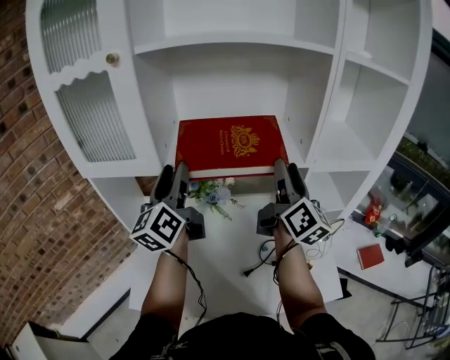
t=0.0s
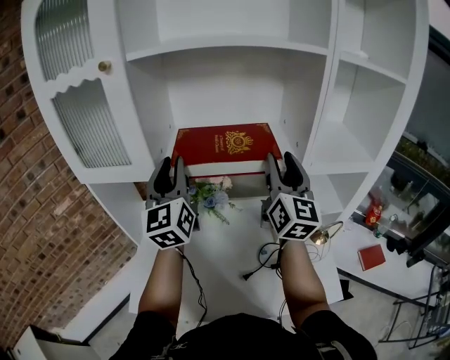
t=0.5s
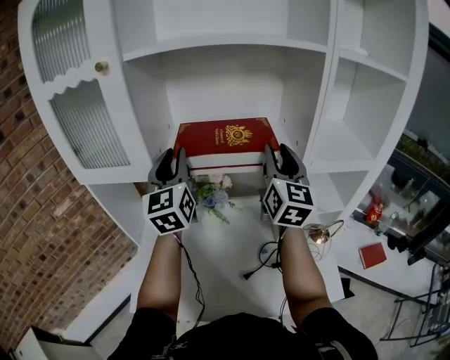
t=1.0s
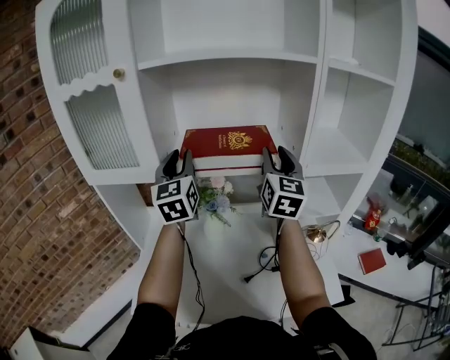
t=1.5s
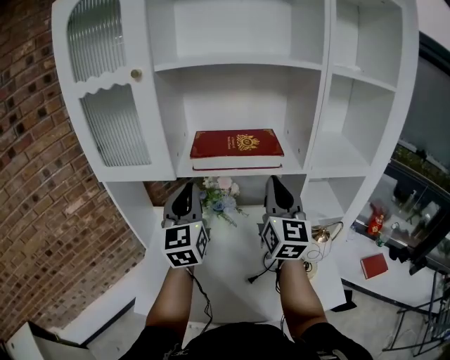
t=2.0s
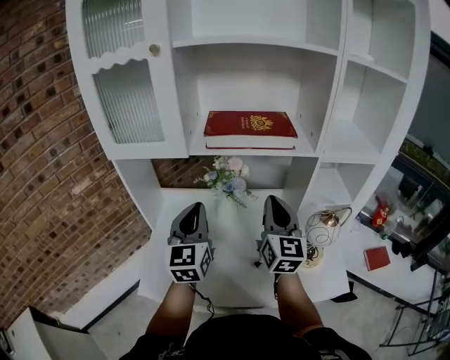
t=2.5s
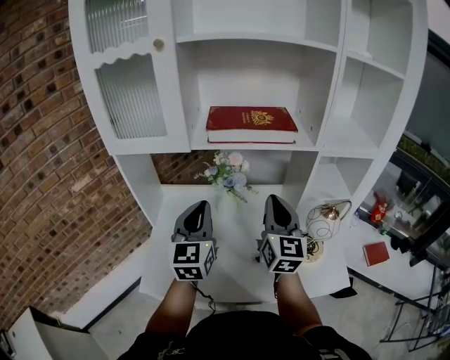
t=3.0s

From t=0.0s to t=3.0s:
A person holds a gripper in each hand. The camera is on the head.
From t=0.0s to t=1.5s: The right gripper ends up about 5 cm from where it was, swivels about 40 degrees, and closes. The left gripper moves approximately 5 cm, turns by approximately 30 degrees, and closes its fingers.
From t=1.5s to t=3.0s: The left gripper shifts about 25 cm backward and downward, and closes its fingers. Meanwhile the right gripper heads backward, downward and to the left, covering some 20 cm, and closes its fingers.

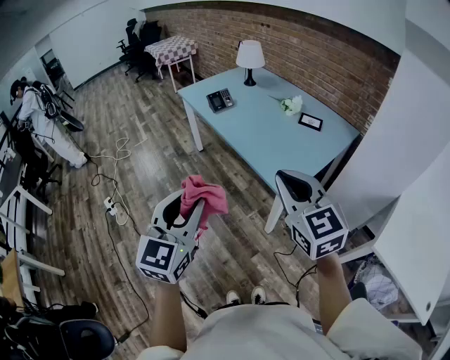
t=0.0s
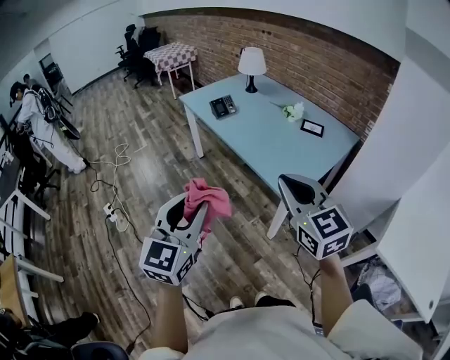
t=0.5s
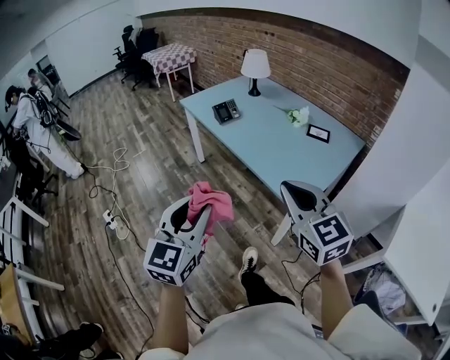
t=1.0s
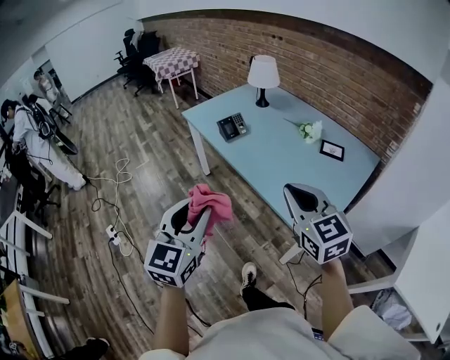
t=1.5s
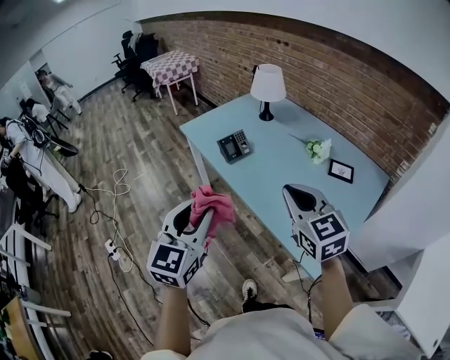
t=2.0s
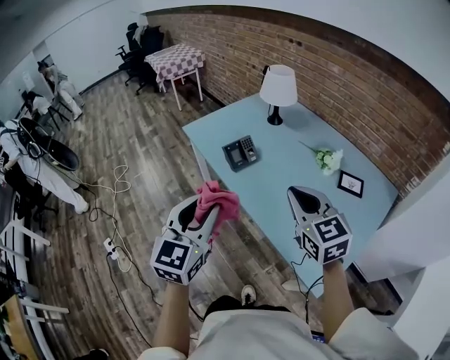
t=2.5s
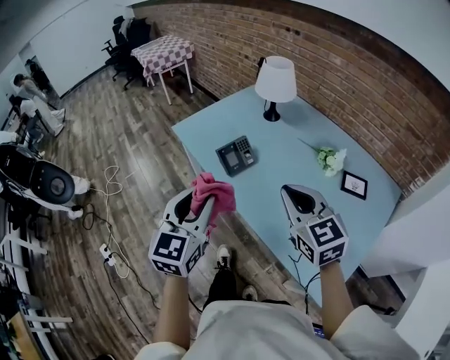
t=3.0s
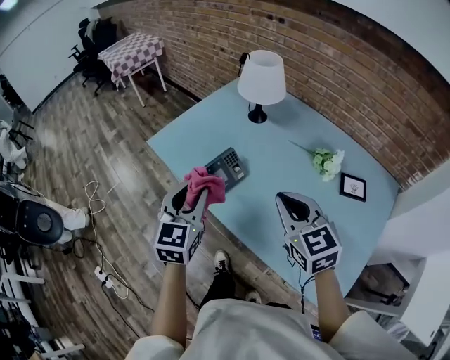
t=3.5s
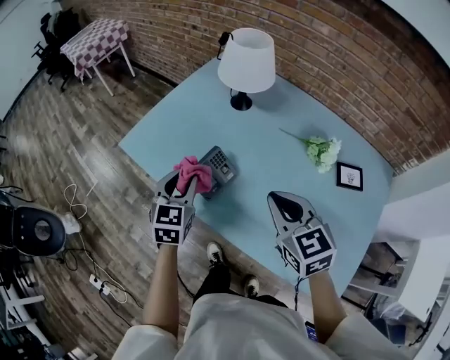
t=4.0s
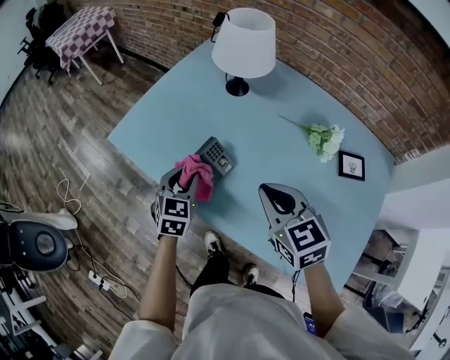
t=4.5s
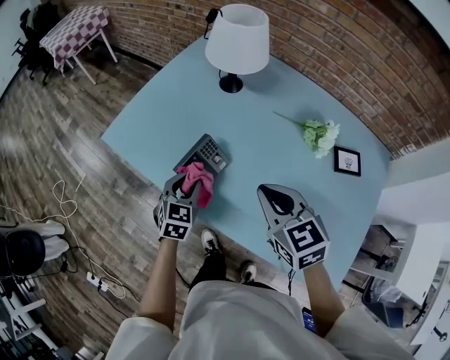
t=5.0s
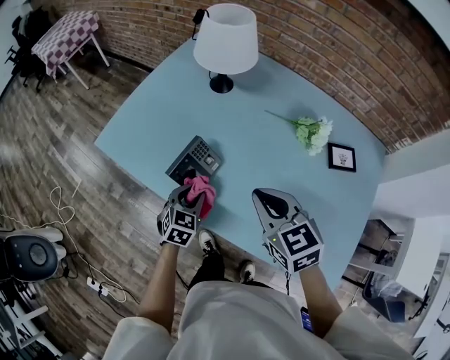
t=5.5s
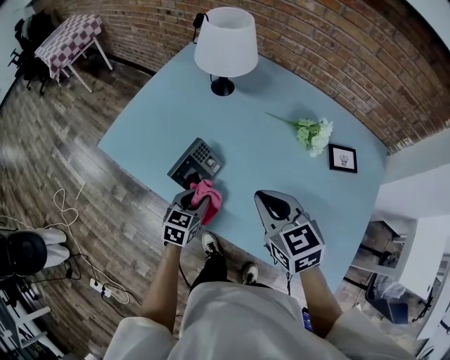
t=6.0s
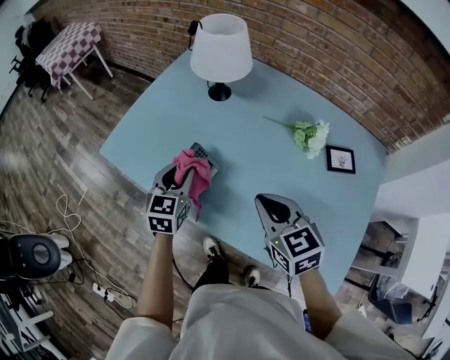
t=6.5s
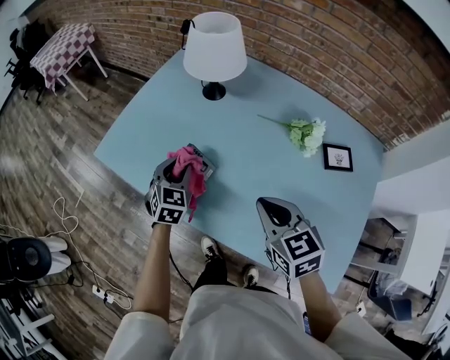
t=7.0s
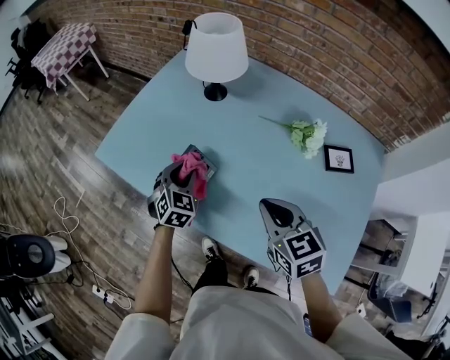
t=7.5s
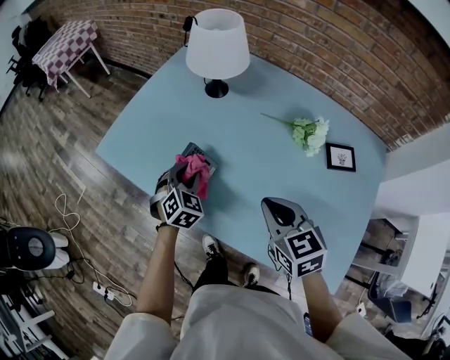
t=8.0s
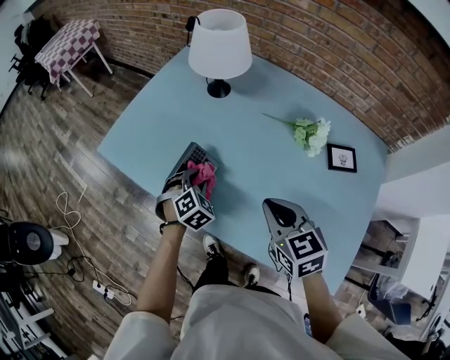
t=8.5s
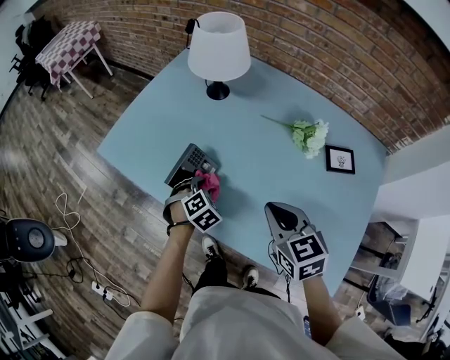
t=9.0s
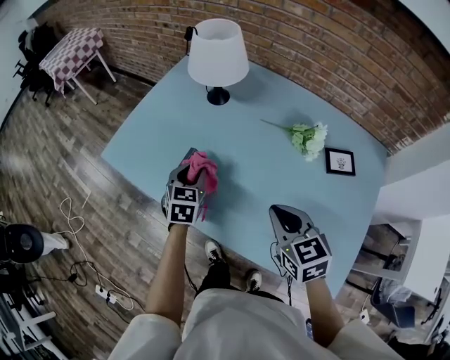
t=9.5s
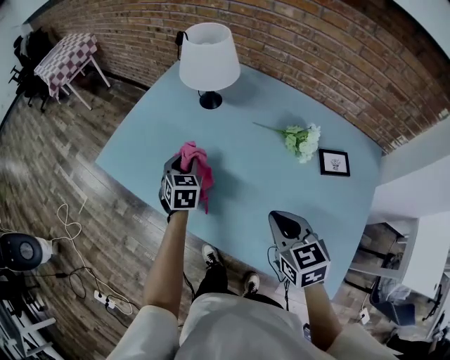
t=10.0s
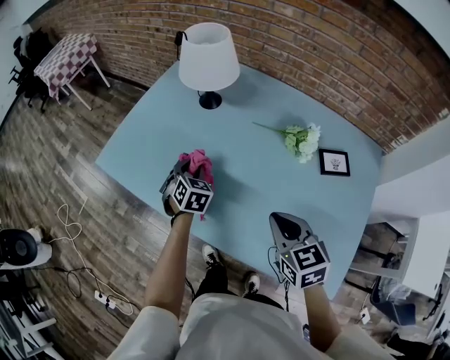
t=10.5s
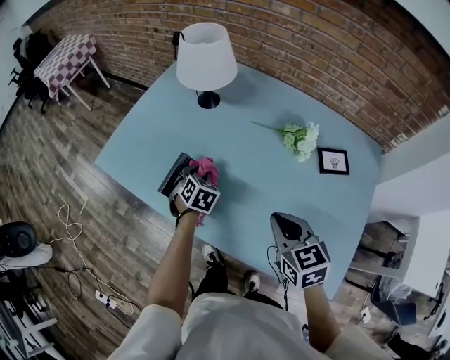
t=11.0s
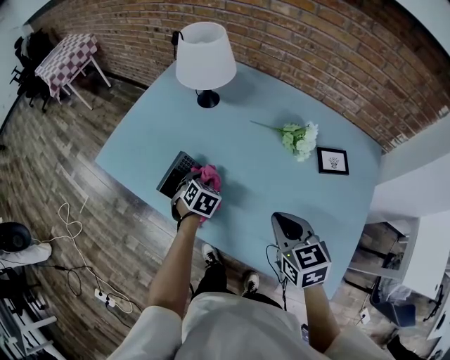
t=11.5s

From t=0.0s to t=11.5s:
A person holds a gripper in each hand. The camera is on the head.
From t=0.0s to t=2.0s: Both grippers move forward, approximately 35 cm.
From t=2.0s to t=4.0s: The left gripper moves forward, roughly 50 cm, and turns by some 20 degrees; the right gripper is displaced forward by some 35 cm, and swivels about 20 degrees.
From t=4.0s to t=6.0s: The left gripper moves downward and to the right, roughly 20 cm, and rotates about 30 degrees.
From t=6.0s to t=7.5s: The left gripper heads forward and upward, covering about 10 cm, and changes its angle by some 30 degrees.
From t=7.5s to t=9.5s: The left gripper moves some 10 cm downward and comes back, and swivels about 20 degrees.
From t=9.5s to t=11.5s: The left gripper heads downward and to the right, covering about 10 cm, and rotates some 30 degrees.

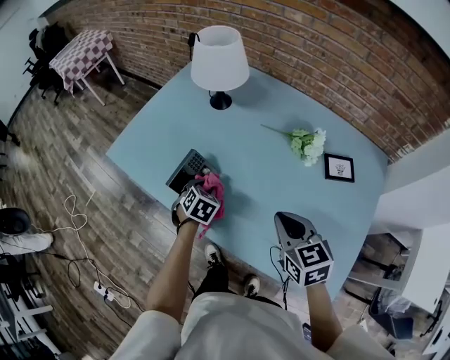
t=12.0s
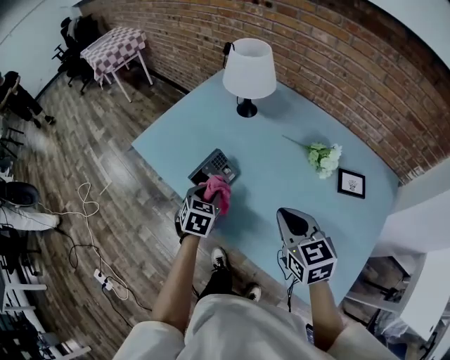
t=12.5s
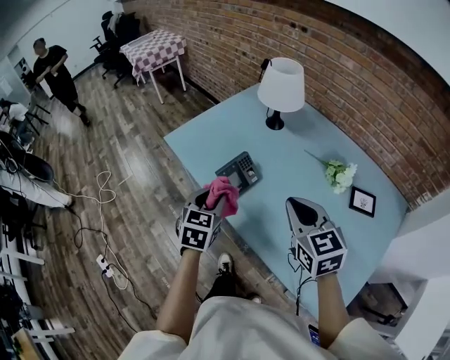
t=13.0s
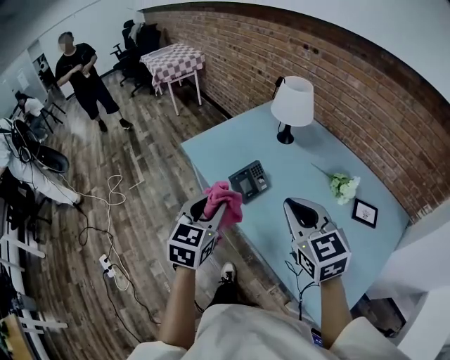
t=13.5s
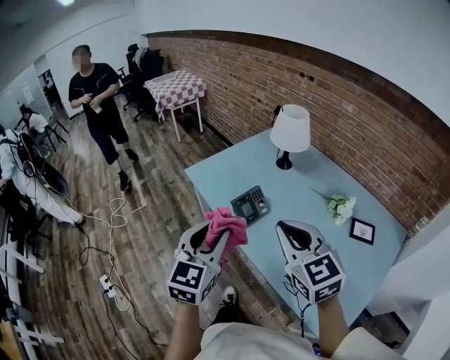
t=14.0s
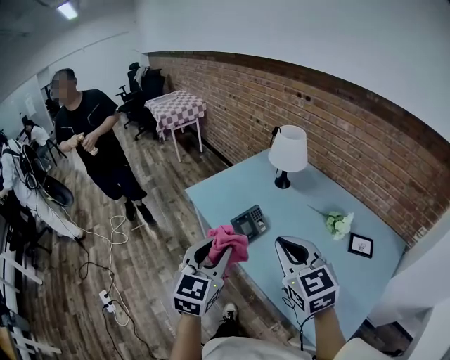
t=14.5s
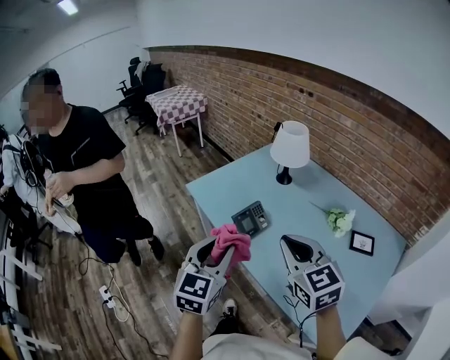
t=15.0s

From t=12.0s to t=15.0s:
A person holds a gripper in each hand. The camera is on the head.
From t=12.0s to t=13.5s: The right gripper goes roughly 20 cm upward and to the left, and turns by about 30 degrees. The left gripper travels upward, backward and to the left by roughly 35 cm, and angles its fingers upward, by about 40 degrees.
From t=13.5s to t=15.0s: The left gripper is displaced upward by roughly 5 cm.

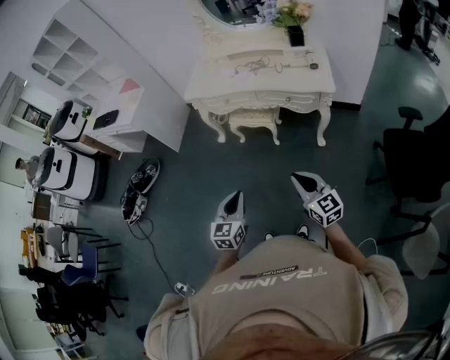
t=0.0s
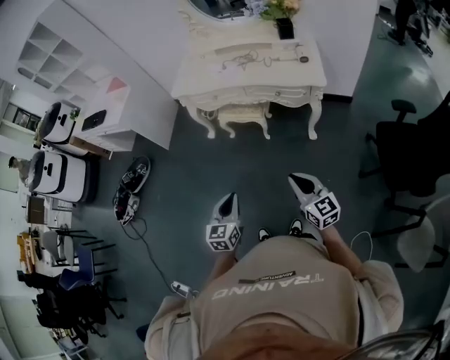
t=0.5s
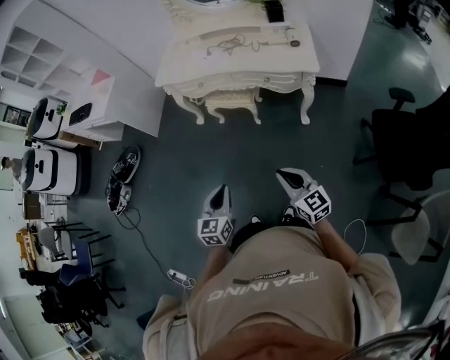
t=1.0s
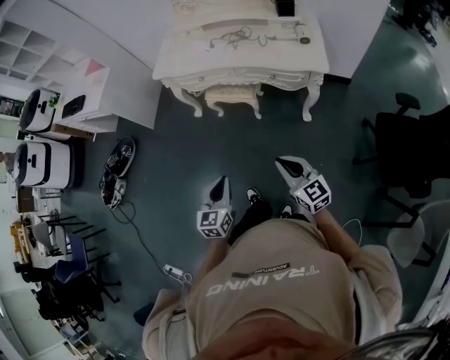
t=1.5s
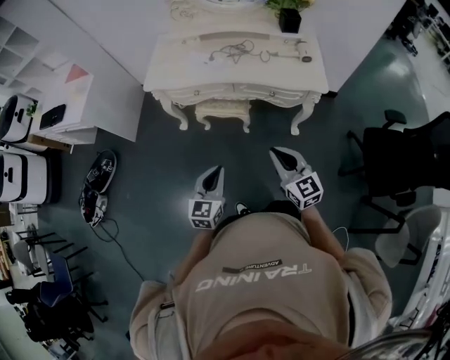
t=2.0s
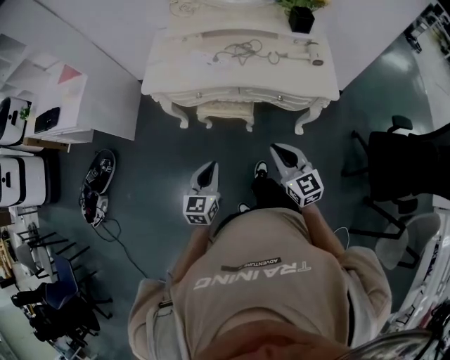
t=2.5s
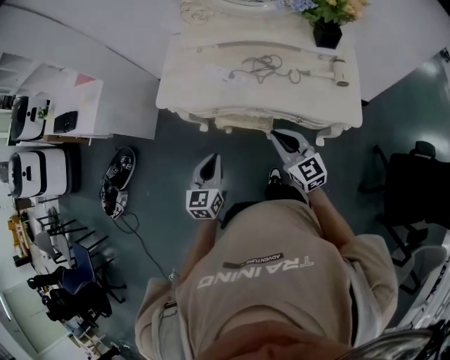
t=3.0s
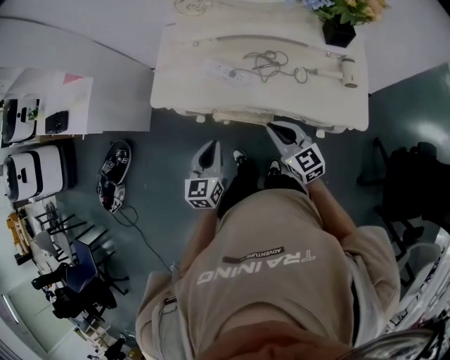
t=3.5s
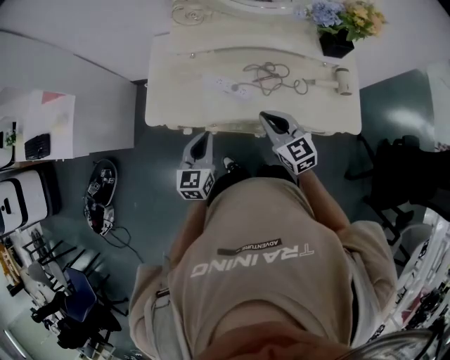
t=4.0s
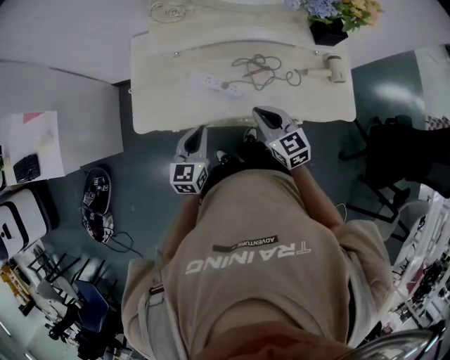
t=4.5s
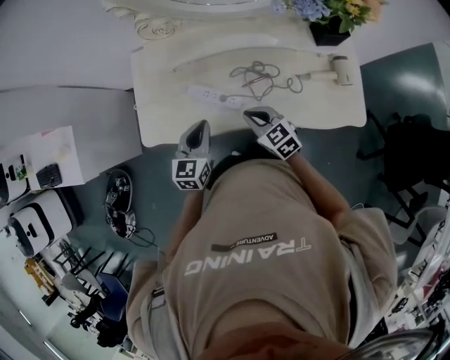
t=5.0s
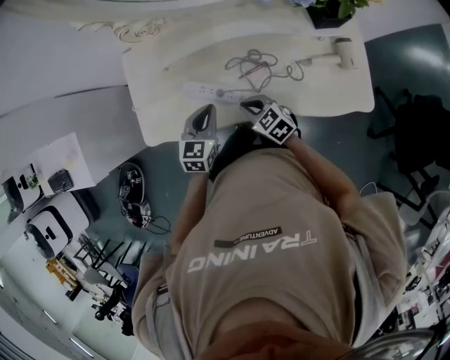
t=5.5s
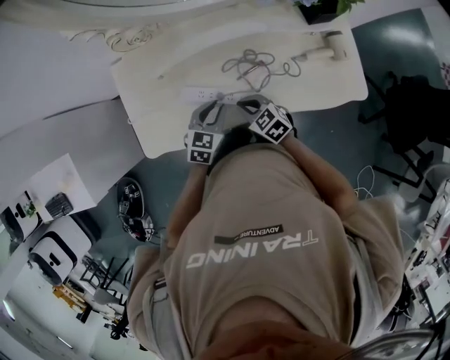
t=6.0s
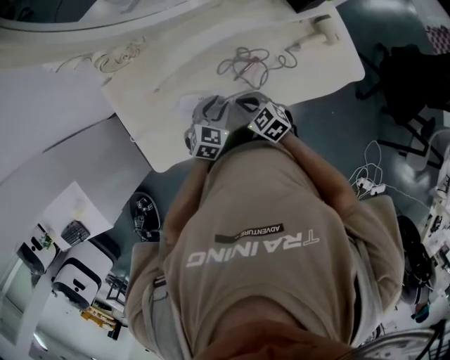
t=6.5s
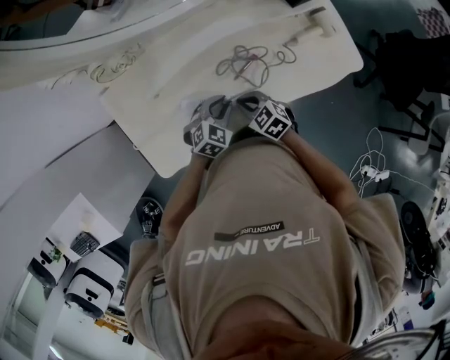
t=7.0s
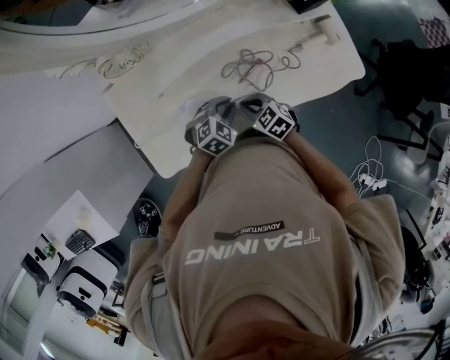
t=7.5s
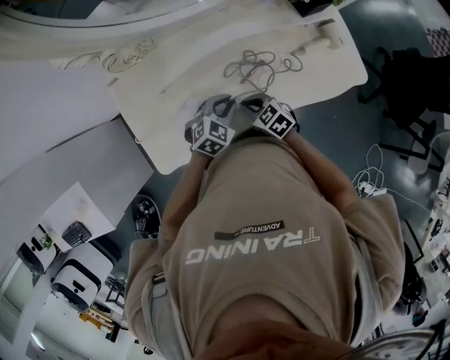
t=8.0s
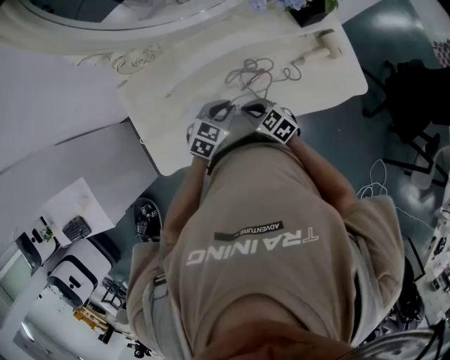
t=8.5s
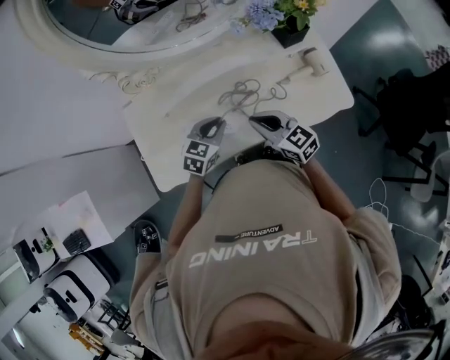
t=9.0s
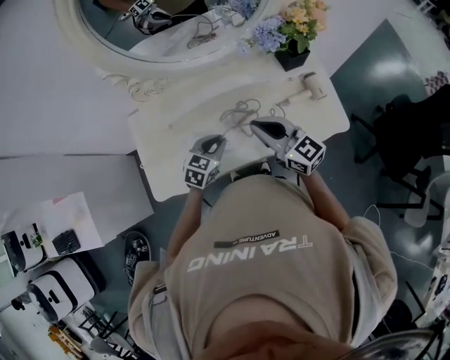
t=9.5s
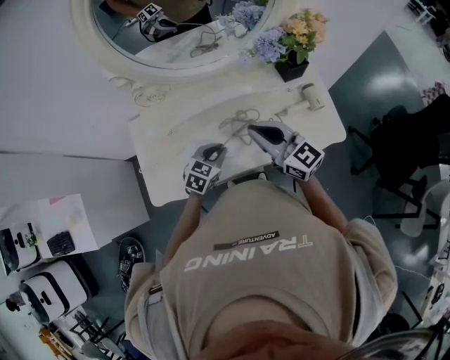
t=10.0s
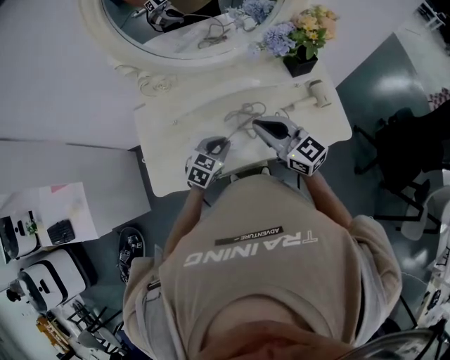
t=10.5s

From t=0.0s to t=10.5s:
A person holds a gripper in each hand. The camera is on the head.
From t=0.0s to t=2.0s: Both grippers travel together forward, about 25 cm.
From t=2.0s to t=4.0s: Both grippers are carried forward, about 50 cm.
From t=4.0s to t=6.5s: The right gripper moves downward and forward, roughly 20 cm, and turns by approximately 30 degrees; the left gripper heads forward, downward and to the right, covering approximately 25 cm, swivels about 50 degrees, and opens its fingers.
From t=8.5s to t=10.5s: The left gripper is displaced upward by about 5 cm, while the right gripper heads upward, covering about 25 cm, and tilts its fingers some 40 degrees upward.
